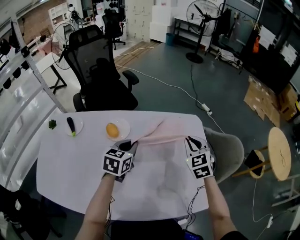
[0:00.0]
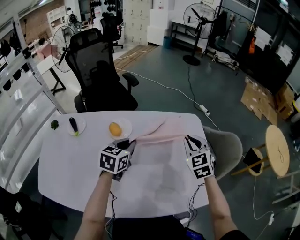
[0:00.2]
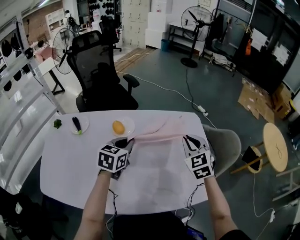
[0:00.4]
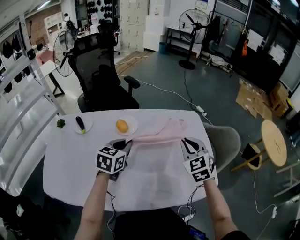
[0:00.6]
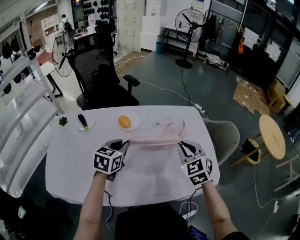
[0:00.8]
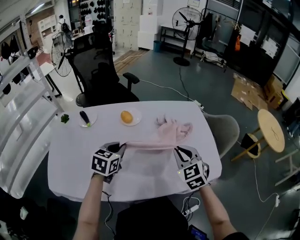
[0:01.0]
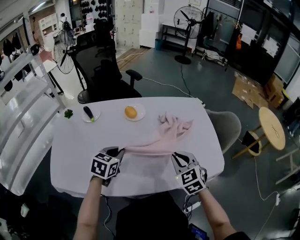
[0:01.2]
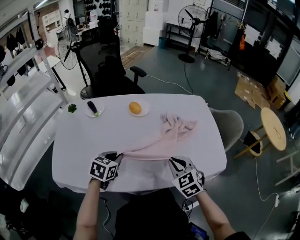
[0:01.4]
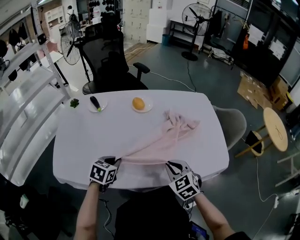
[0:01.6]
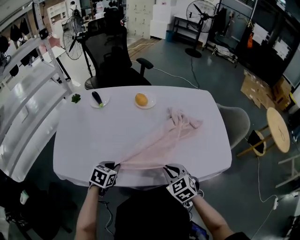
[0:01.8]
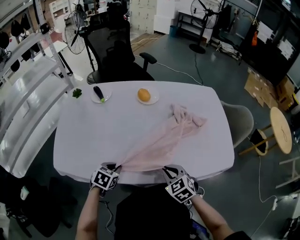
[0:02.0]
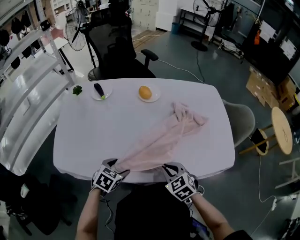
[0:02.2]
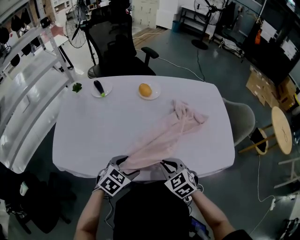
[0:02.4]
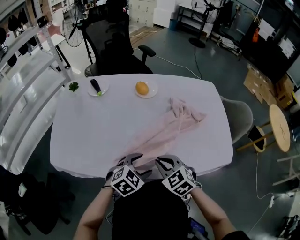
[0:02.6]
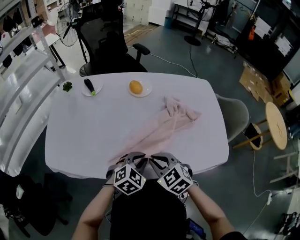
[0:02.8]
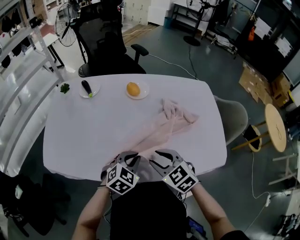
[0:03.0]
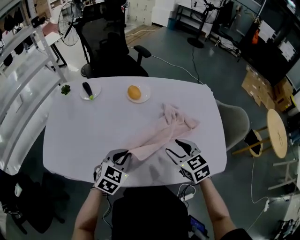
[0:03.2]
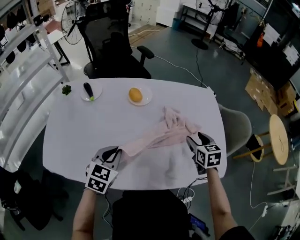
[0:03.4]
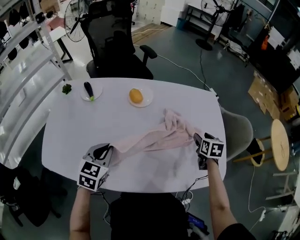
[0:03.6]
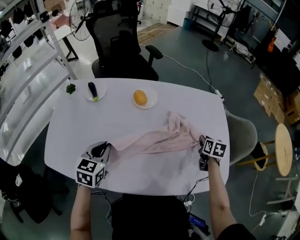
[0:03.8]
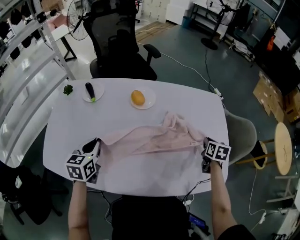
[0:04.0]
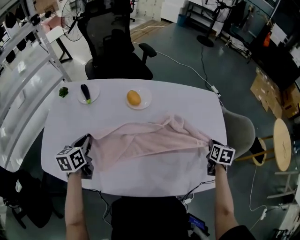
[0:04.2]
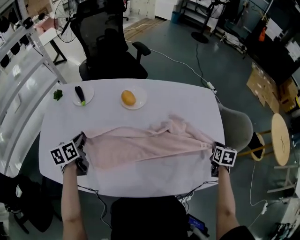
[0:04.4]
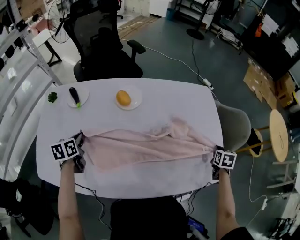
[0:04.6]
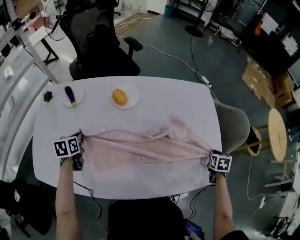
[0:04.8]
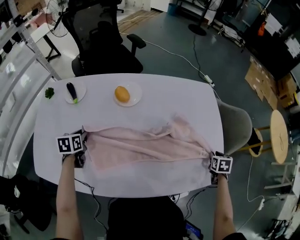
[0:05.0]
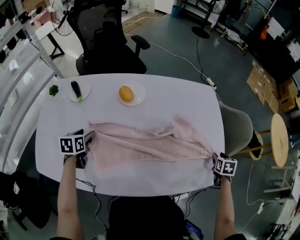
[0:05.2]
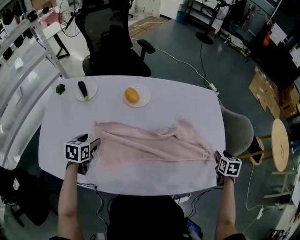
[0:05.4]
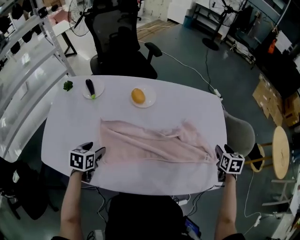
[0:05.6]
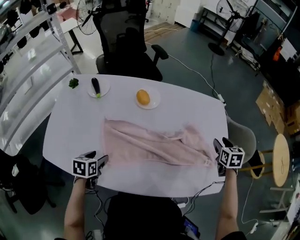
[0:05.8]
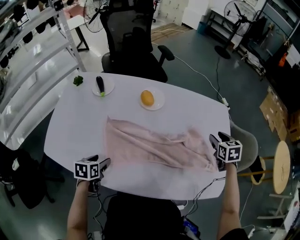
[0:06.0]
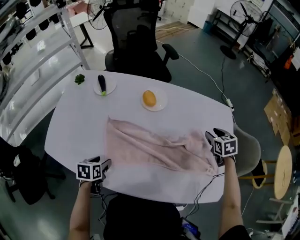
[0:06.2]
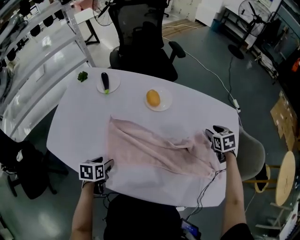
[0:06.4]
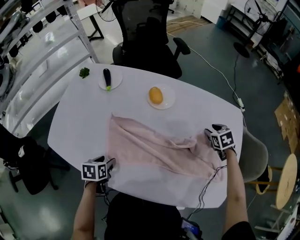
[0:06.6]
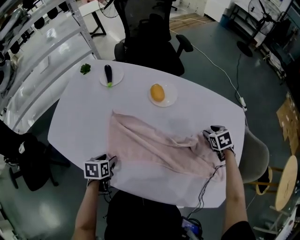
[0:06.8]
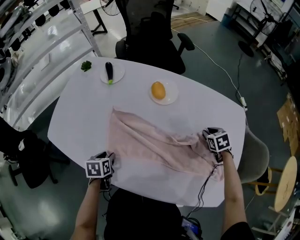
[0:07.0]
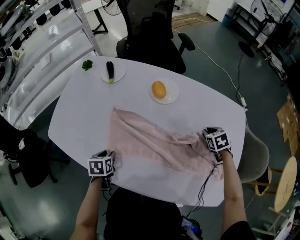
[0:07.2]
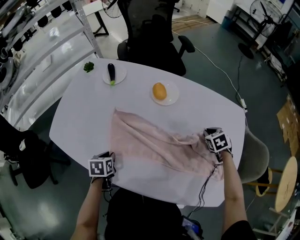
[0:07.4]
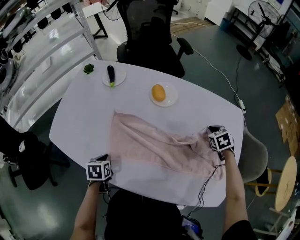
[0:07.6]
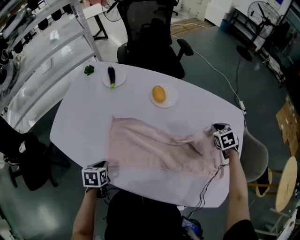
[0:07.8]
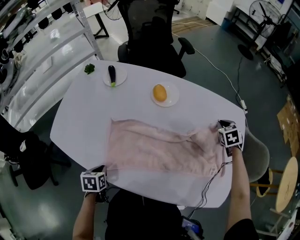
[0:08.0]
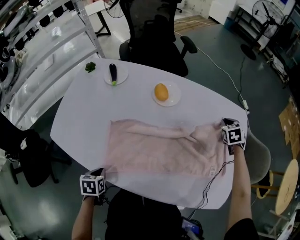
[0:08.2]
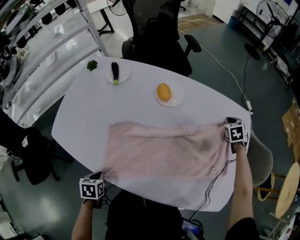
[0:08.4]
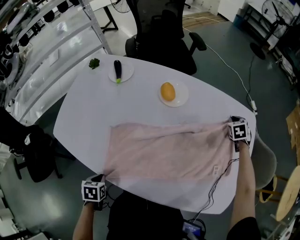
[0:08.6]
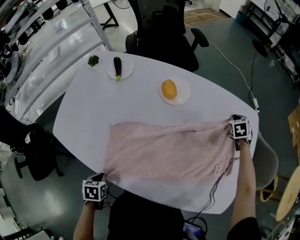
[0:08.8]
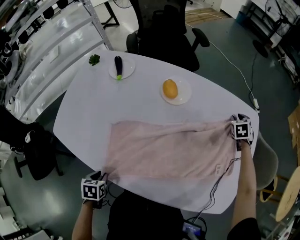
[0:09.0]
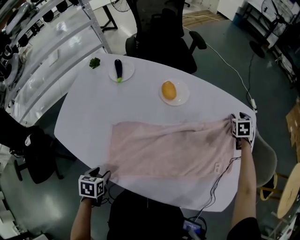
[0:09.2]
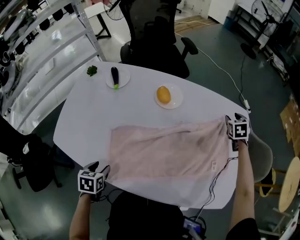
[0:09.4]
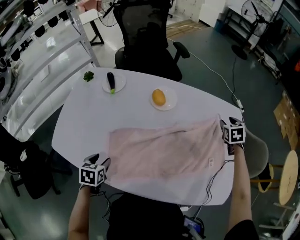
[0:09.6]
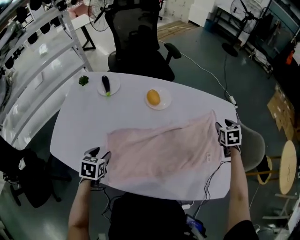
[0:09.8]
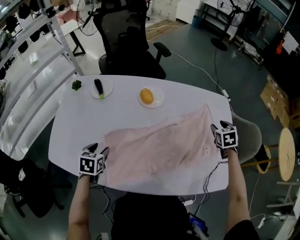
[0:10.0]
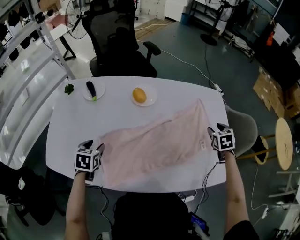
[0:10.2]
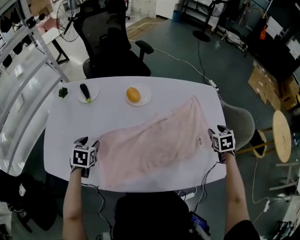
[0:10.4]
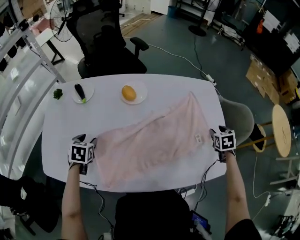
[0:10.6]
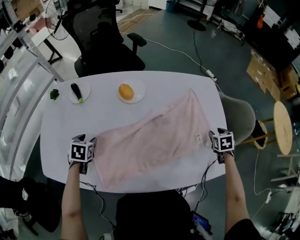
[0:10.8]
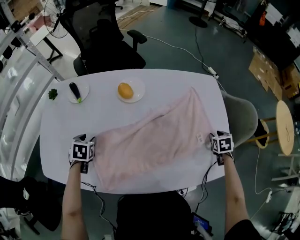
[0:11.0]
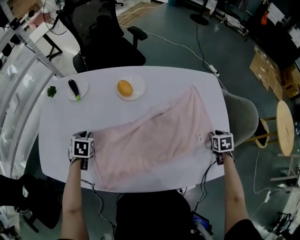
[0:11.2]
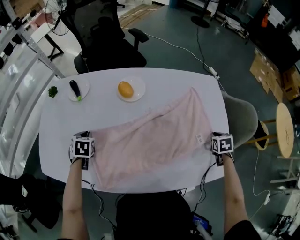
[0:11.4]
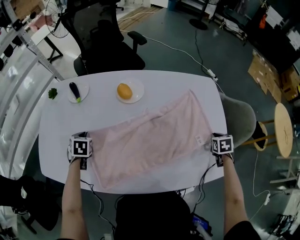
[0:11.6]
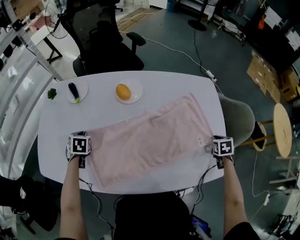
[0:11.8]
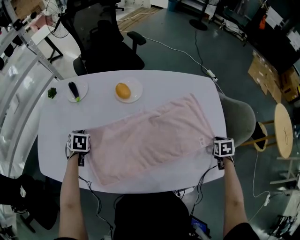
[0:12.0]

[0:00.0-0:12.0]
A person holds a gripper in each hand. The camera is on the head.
0:00.0 to 0:01.6: The two grippers go roughly 35 cm backward and to the left.
0:01.6 to 0:03.0: The left gripper heads to the right, covering about 15 cm, swivels roughly 30 degrees, and opens and closes again.
0:03.0 to 0:04.4: The left gripper heads to the left and forward, covering some 30 cm, and twists approximately 60 degrees counterclockwise, seen from behind. The right gripper heads to the right and forward, covering roughly 40 cm, swivels approximately 60 degrees, and closes up.
0:04.4 to 0:06.0: The left gripper shifts roughly 20 cm backward, to the right and downward, and opens. Meanwhile the right gripper heads to the left, forward and upward, covering about 15 cm, rotates approximately 30 degrees, and opens its fingers.
0:06.0 to 0:07.6: The right gripper heads downward, forward and to the left, covering some 15 cm, turns by approximately 30 degrees, and closes its fingers, while the left gripper closes its fingers.
0:07.6 to 0:09.0: The left gripper goes approximately 10 cm backward. The right gripper heads forward and to the right, covering roughly 15 cm.
0:09.0 to 0:10.4: The right gripper is displaced backward by some 25 cm. Meanwhile the left gripper travels forward by some 25 cm, rotates roughly 40 degrees, and opens.
0:10.4 to 0:12.0: The right gripper moves to the right, downward and backward, roughly 15 cm, and closes. Meanwhile the left gripper heads downward and forward, covering approximately 10 cm, and closes.

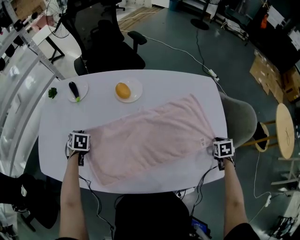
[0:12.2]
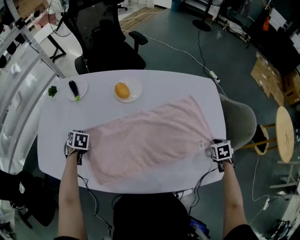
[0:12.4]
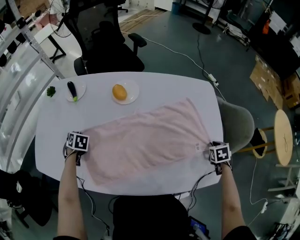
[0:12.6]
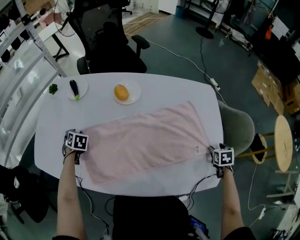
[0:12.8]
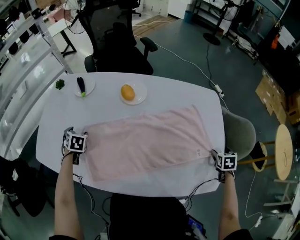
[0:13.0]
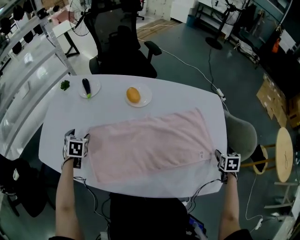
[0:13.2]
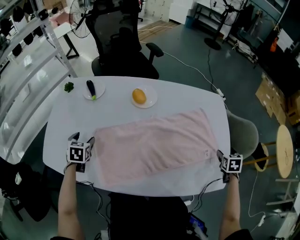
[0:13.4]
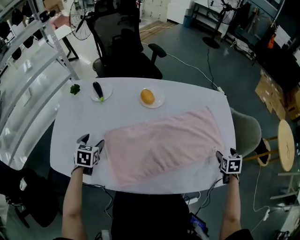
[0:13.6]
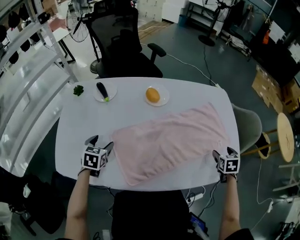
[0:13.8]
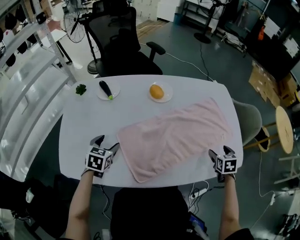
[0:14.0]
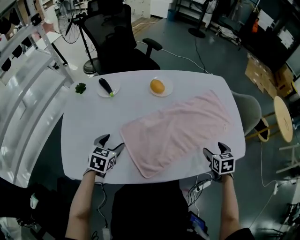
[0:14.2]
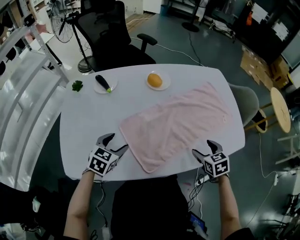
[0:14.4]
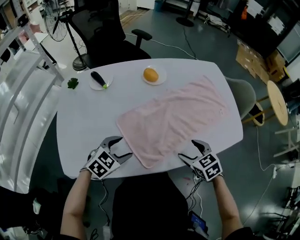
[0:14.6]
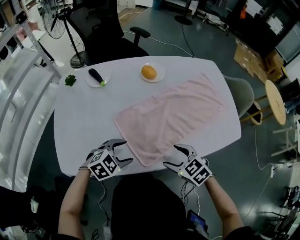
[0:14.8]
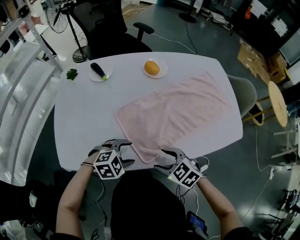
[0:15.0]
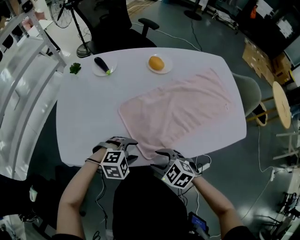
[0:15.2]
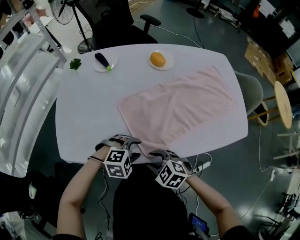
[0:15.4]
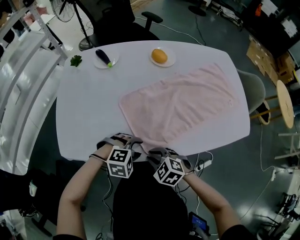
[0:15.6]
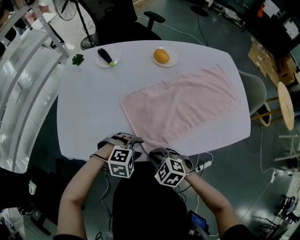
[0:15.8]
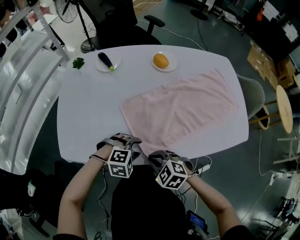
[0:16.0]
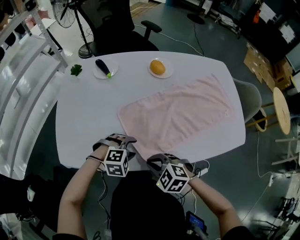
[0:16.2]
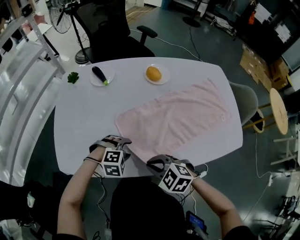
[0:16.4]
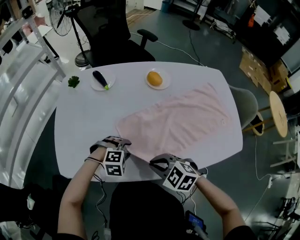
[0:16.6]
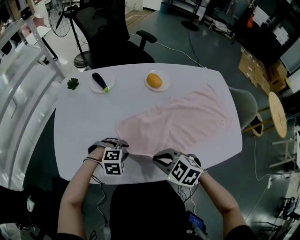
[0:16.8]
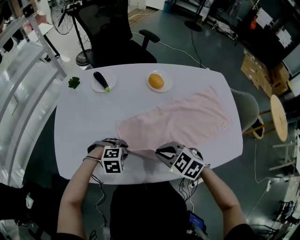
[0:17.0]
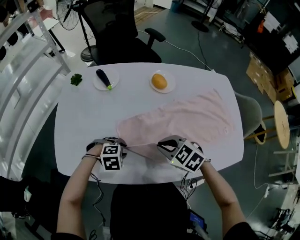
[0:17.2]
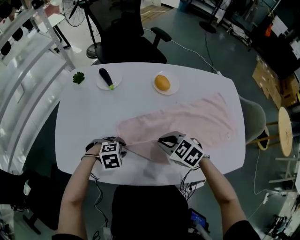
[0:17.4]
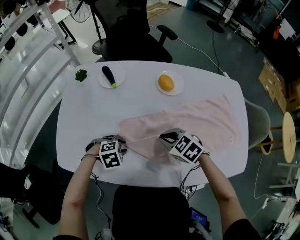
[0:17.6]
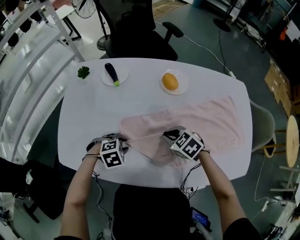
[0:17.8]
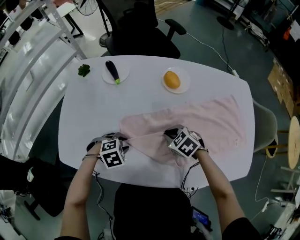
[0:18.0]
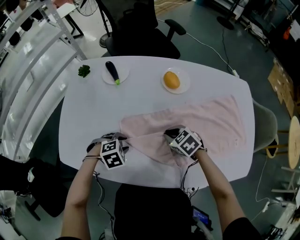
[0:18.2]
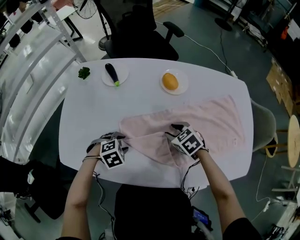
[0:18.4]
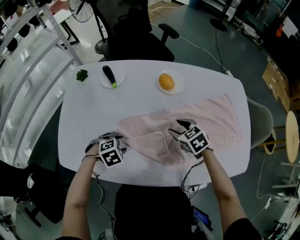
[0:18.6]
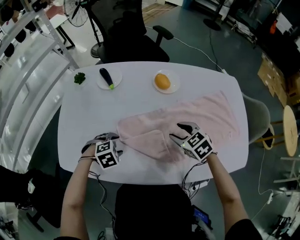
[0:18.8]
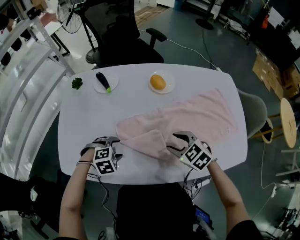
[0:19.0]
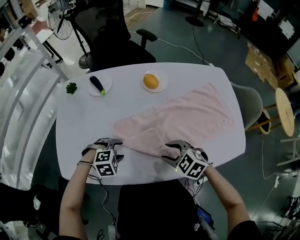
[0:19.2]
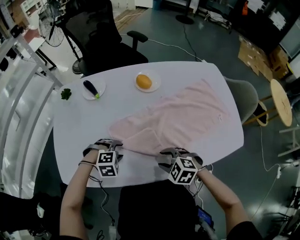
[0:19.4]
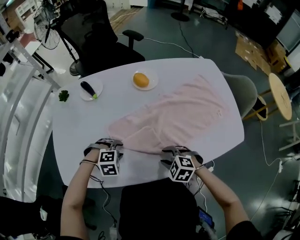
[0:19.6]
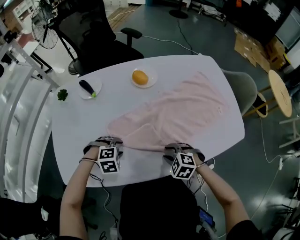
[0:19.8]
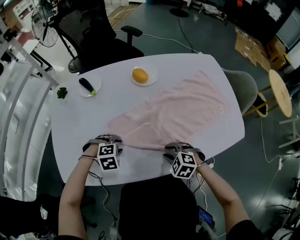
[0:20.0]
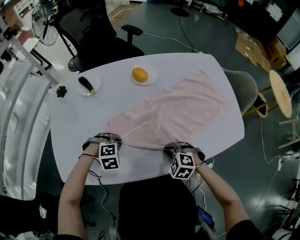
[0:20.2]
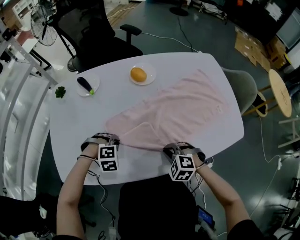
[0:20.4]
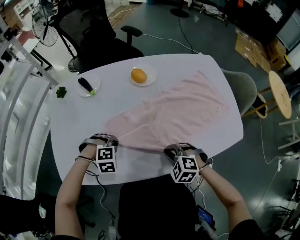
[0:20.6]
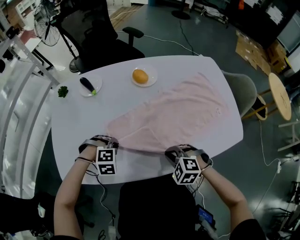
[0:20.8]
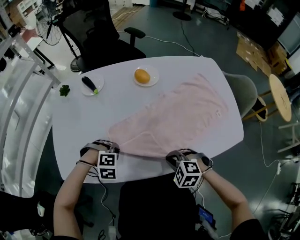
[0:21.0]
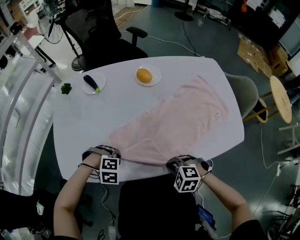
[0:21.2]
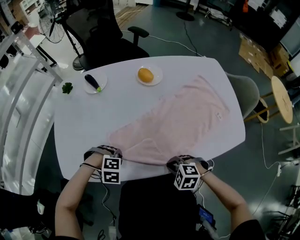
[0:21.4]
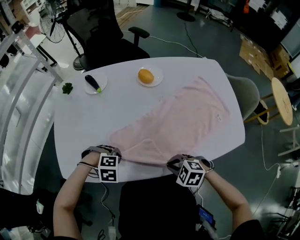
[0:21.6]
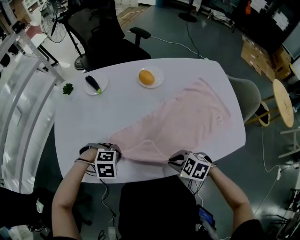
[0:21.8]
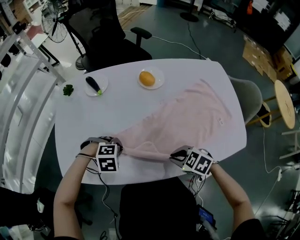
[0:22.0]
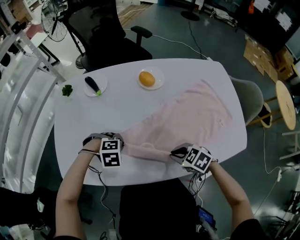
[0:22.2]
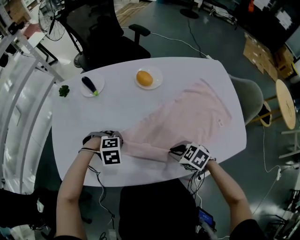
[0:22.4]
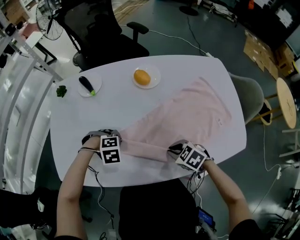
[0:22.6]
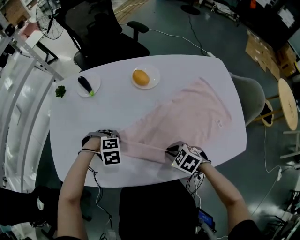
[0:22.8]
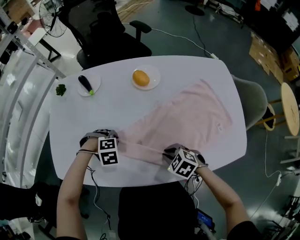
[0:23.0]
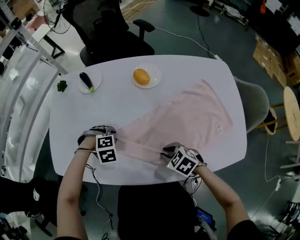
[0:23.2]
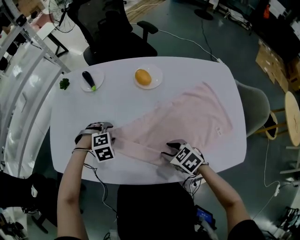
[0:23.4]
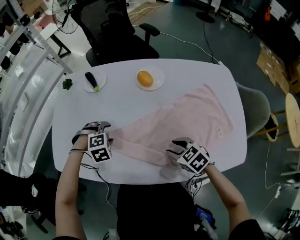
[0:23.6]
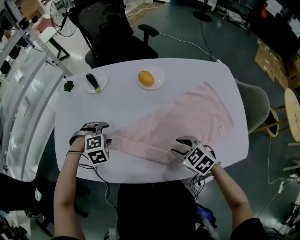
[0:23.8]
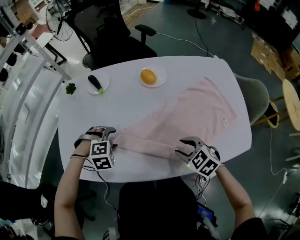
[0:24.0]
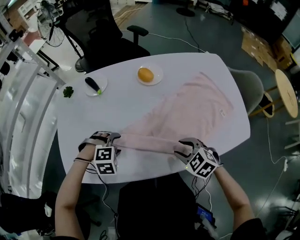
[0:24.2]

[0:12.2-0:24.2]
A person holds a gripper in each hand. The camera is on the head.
0:12.2 to 0:13.8: The right gripper ends up roughly 15 cm from where it was, and opens up, while the left gripper changes place by about 10 cm, turns by some 30 degrees, and opens.
0:13.8 to 0:15.2: The left gripper moves roughly 20 cm, and rolls clockwise, seen from behind, by roughly 60 degrees. Meanwhile the right gripper ends up approximately 50 cm from where it was, and changes its angle by roughly 60 degrees.
0:15.2 to 0:16.6: The right gripper ends up approximately 5 cm from where it was, and closes up. Meanwhile the left gripper moves roughly 10 cm.
0:16.6 to 0:18.2: The left gripper ends up about 5 cm from where it was, and turns by approximately 30 degrees. The right gripper shifts by approximately 20 cm.
0:18.2 to 0:19.8: The left gripper changes its angle by roughly 30 degrees. Meanwhile the right gripper heads backward, covering roughly 15 cm.
0:19.8 to 0:21.2: The left gripper changes place by about 5 cm, and closes its fingers, while the right gripper changes place by about 10 cm, and closes up.
0:21.2 to 0:22.6: The left gripper shifts by approximately 10 cm. Meanwhile the right gripper ends up approximately 10 cm from where it was, and rotates roughly 30 degrees.
0:22.6 to 0:24.2: The left gripper changes place by approximately 5 cm, and opens up, while the right gripper goes approximately 5 cm upward, and opens its fingers.
